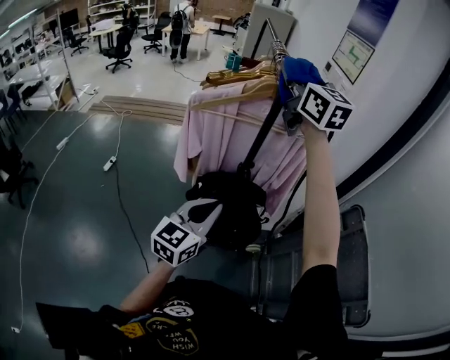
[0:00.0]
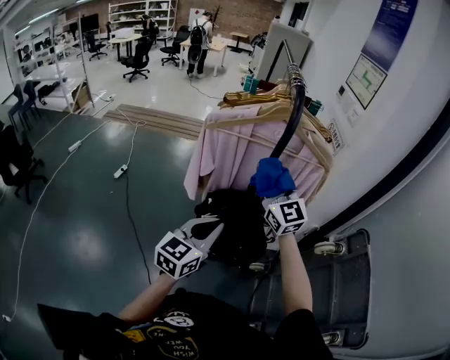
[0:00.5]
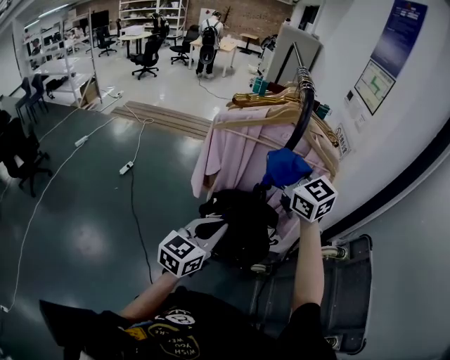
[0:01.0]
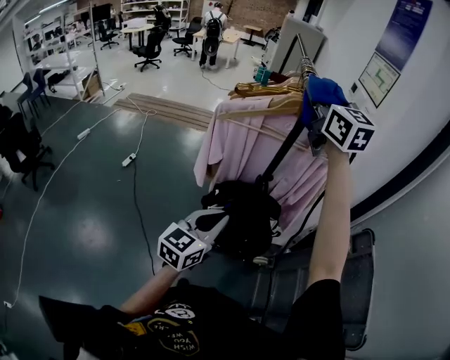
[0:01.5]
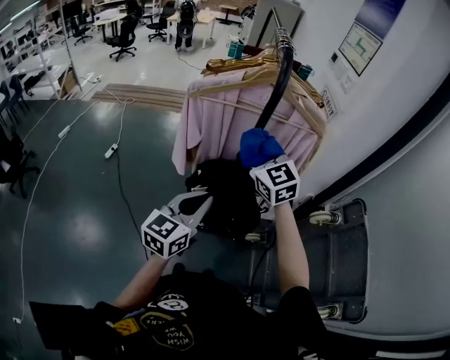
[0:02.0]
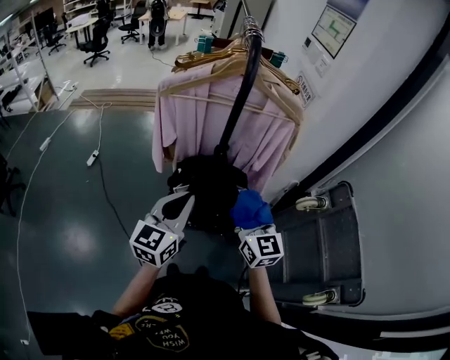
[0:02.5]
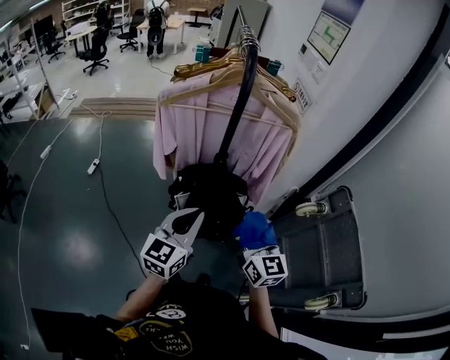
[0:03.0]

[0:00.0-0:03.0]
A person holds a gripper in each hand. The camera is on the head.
0.0 to 1.5 s: The right gripper goes downward and returns, some 20 cm each way.
1.5 to 3.0 s: The right gripper goes roughly 40 cm downward and backward, and turns by roughly 30 degrees.

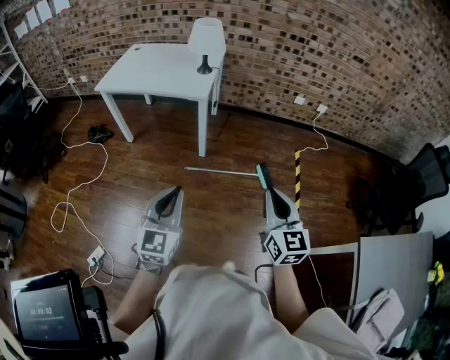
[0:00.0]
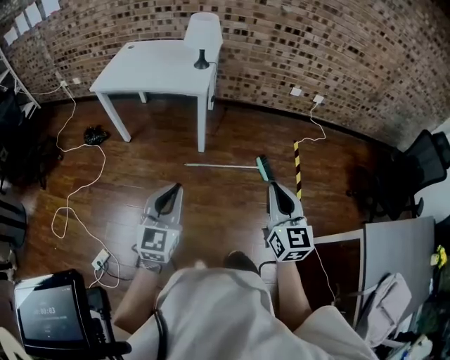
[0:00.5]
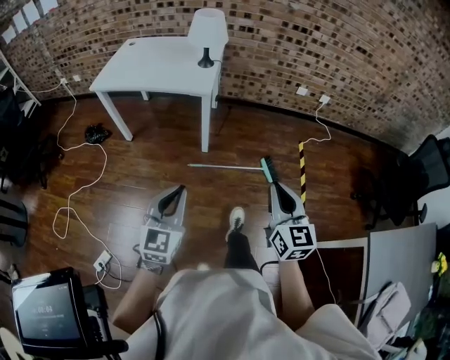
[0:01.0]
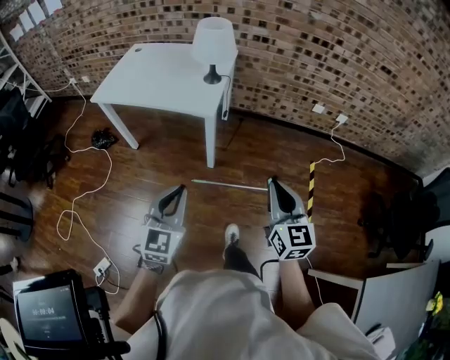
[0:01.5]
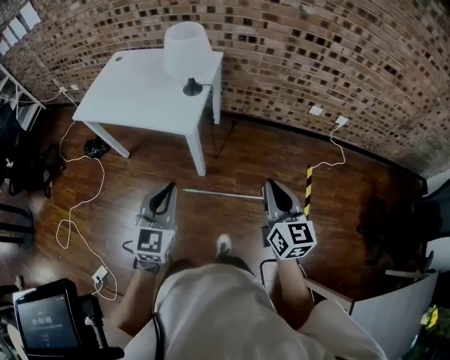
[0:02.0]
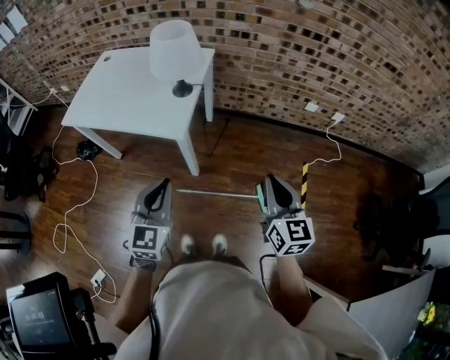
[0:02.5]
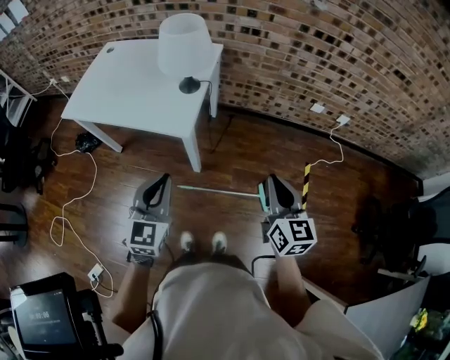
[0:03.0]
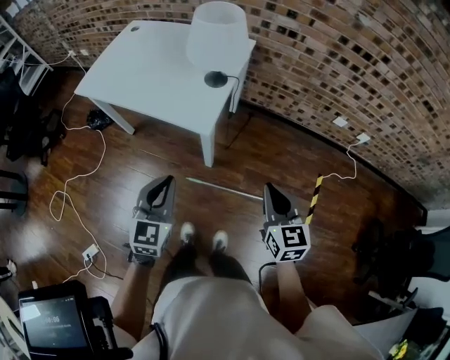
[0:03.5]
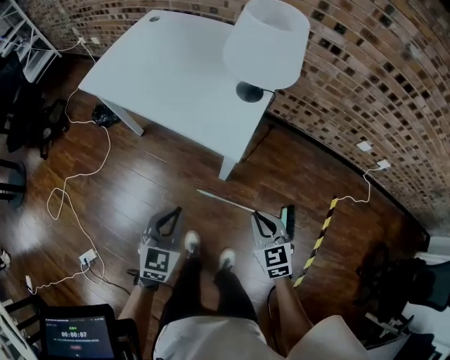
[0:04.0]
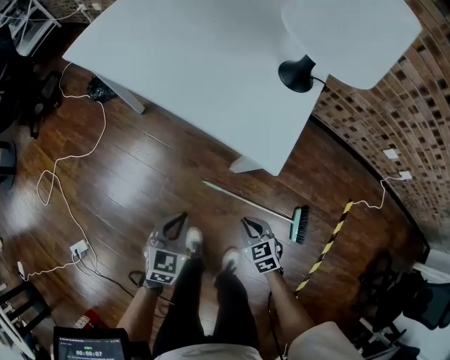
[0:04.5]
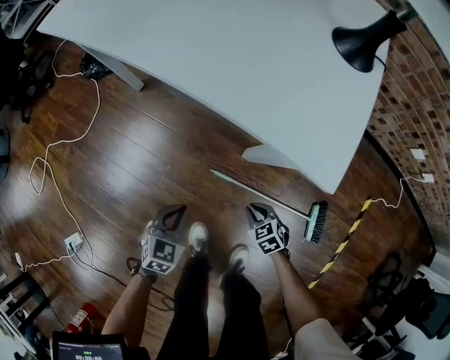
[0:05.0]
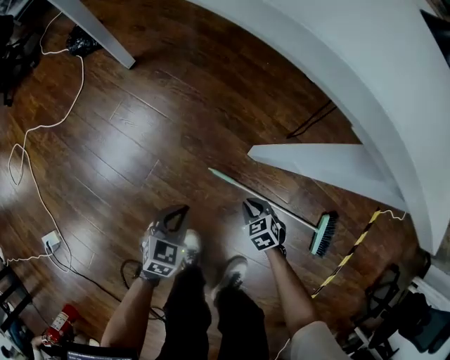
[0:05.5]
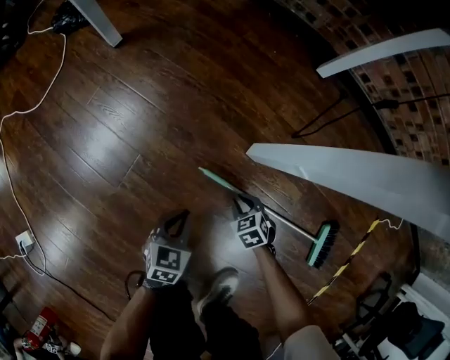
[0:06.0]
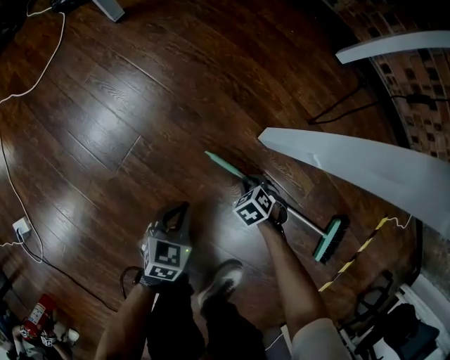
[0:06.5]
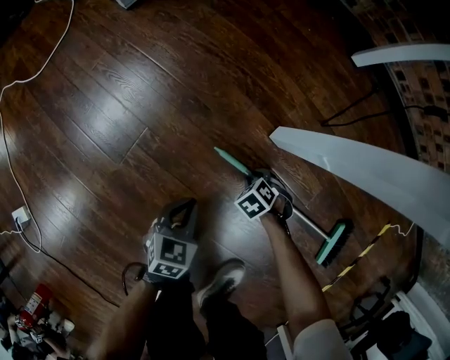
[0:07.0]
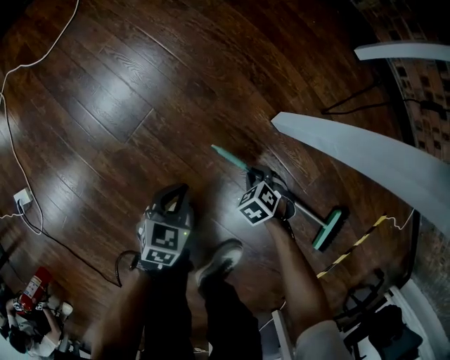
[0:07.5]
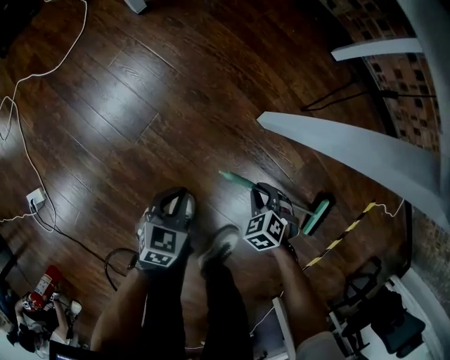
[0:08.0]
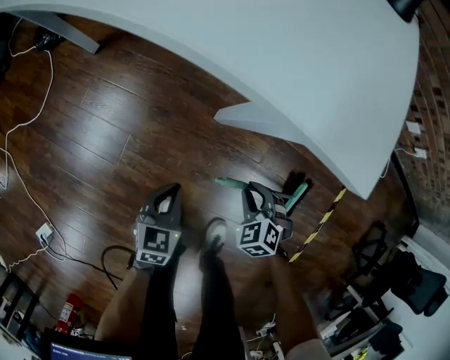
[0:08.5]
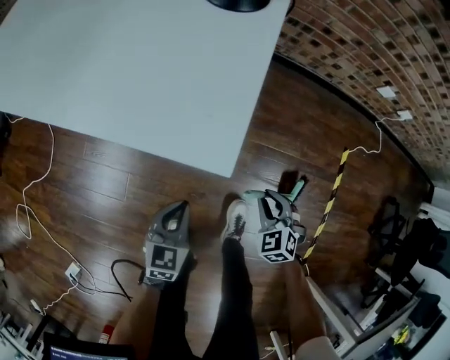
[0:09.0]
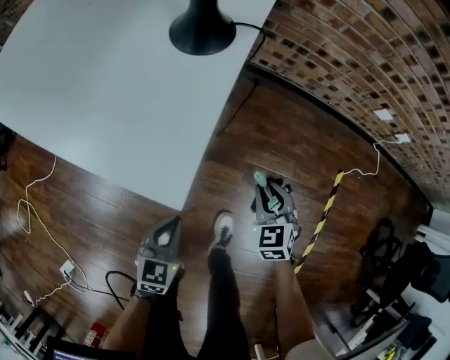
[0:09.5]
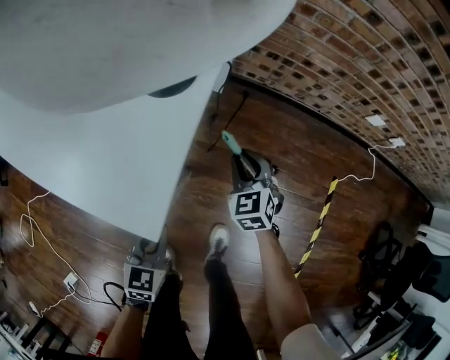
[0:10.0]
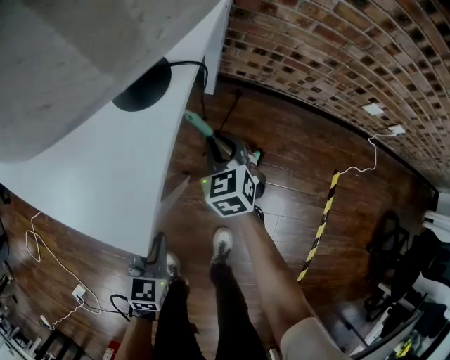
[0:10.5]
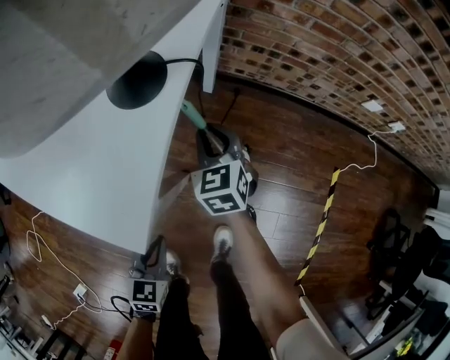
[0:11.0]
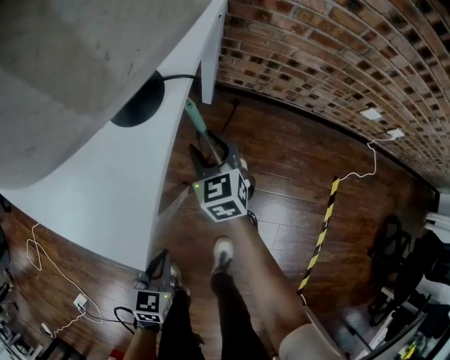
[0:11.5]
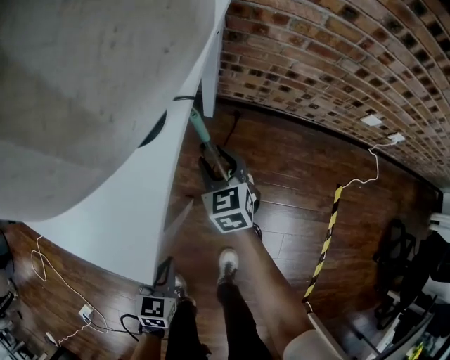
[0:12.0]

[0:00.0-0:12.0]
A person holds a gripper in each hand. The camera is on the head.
0.0 to 2.0 s: Both grippers travel together forward, approximately 35 cm.
2.0 to 4.0 s: Both grippers move downward, to the left and forward, about 30 cm. The right gripper turns by some 40 degrees.
4.0 to 6.0 s: The grippers both shift downward by some 70 cm. The right gripper tips its fingers downward by about 30 degrees; the left gripper swivels roughly 30 degrees.
6.0 to 8.0 s: The grippers both shift upward by some 15 cm. The right gripper turns by approximately 20 degrees.
8.0 to 10.0 s: The left gripper is displaced upward by some 30 cm. The right gripper changes place by roughly 50 cm, and tilts its fingers some 40 degrees upward.
10.0 to 12.0 s: The right gripper goes roughly 10 cm forward, and opens up.

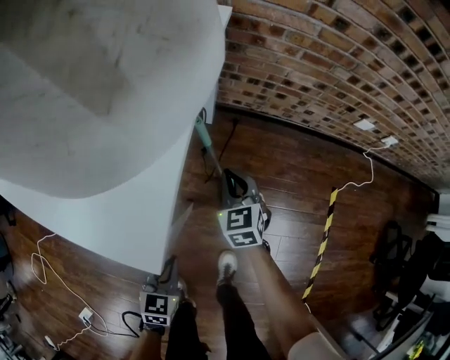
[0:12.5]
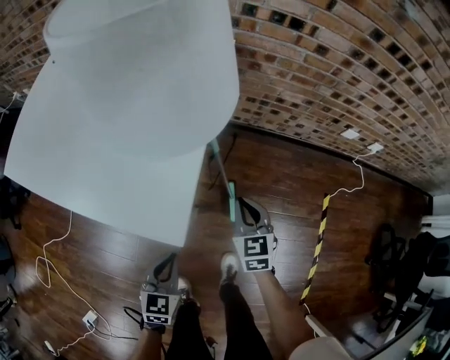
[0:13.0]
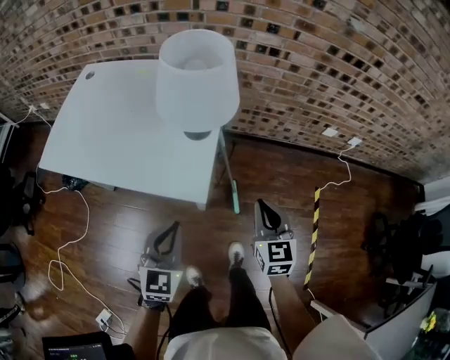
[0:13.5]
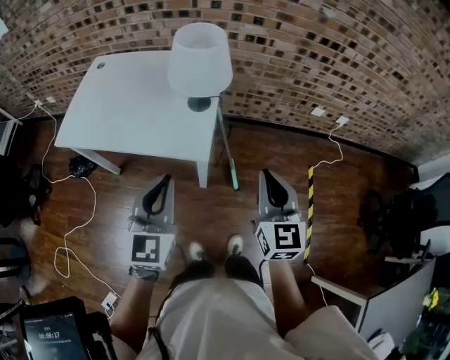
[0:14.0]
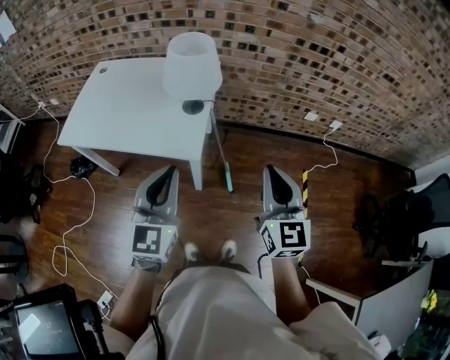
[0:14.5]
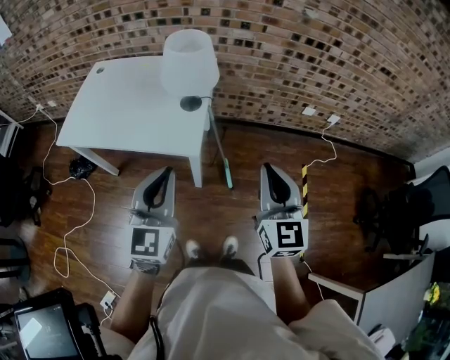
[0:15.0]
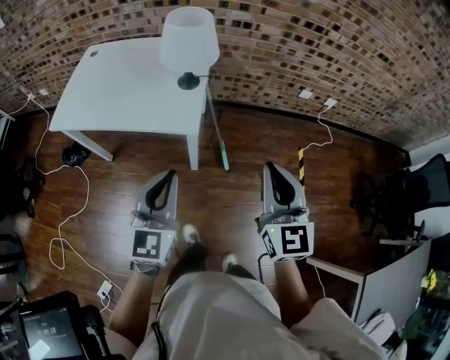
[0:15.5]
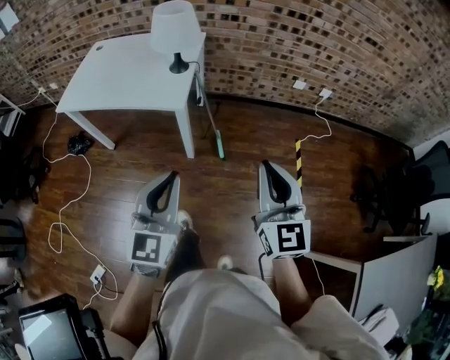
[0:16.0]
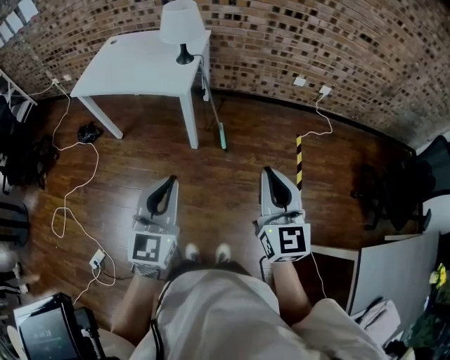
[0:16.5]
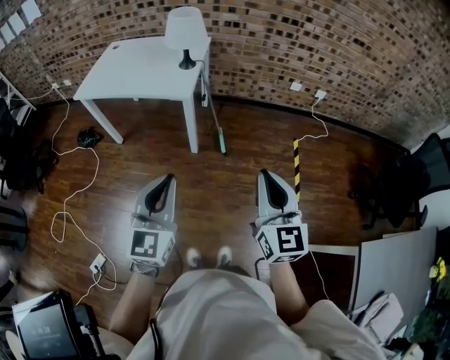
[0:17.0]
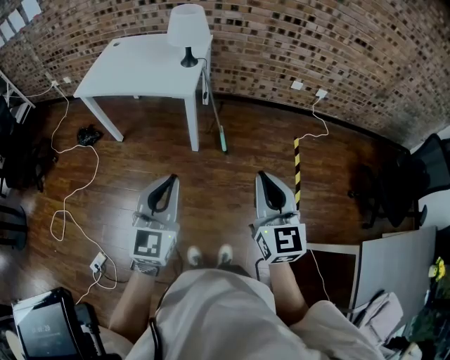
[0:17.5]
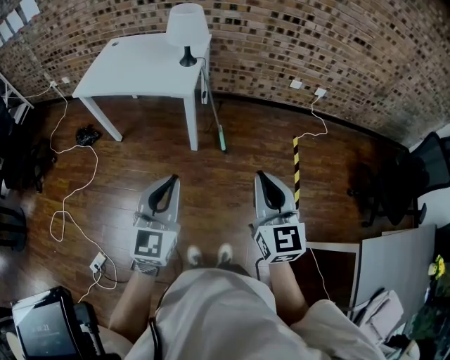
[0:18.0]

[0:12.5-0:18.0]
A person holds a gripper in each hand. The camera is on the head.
12.5 to 14.5 s: The left gripper shifts about 50 cm upward, and angles its fingers upward, by about 40 degrees, while the right gripper goes roughly 60 cm upward and backward, and tilts its fingers some 30 degrees upward.
14.5 to 16.0 s: The right gripper travels backward by roughly 20 cm. Meanwhile the left gripper shifts some 25 cm backward and to the right.
16.0 to 18.0 s: The grippers both shift backward by some 15 cm.

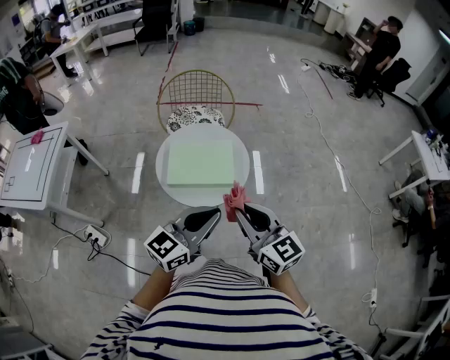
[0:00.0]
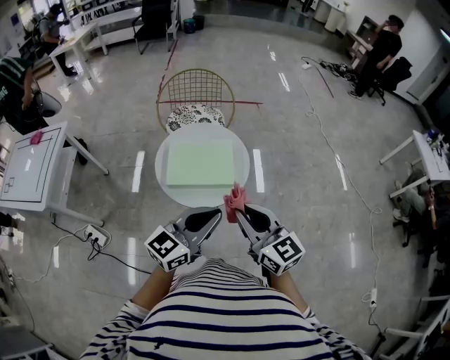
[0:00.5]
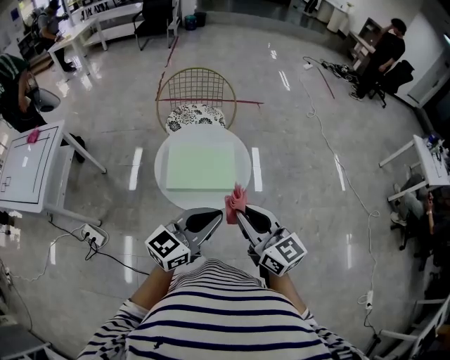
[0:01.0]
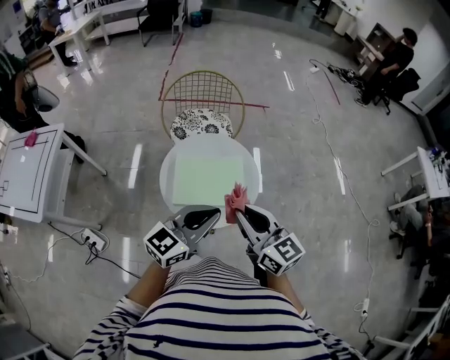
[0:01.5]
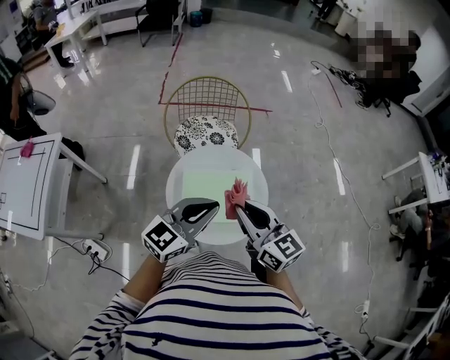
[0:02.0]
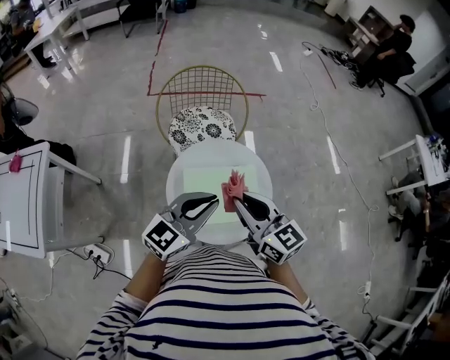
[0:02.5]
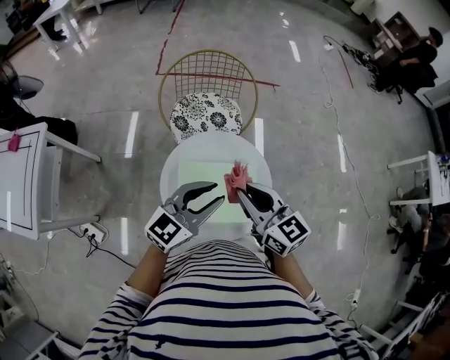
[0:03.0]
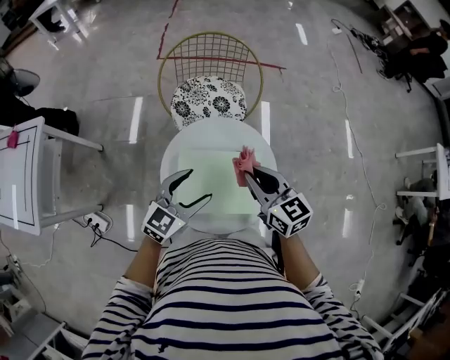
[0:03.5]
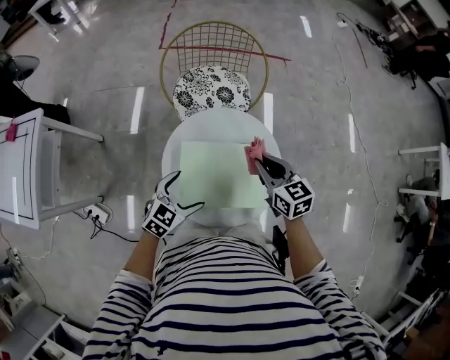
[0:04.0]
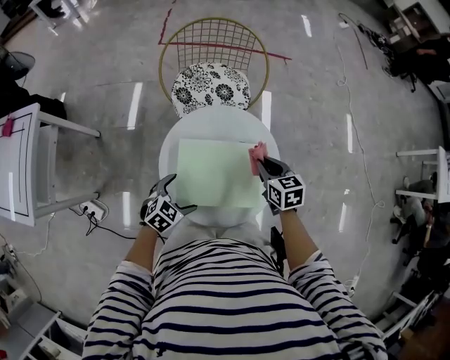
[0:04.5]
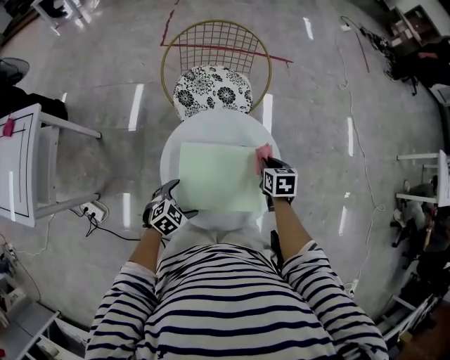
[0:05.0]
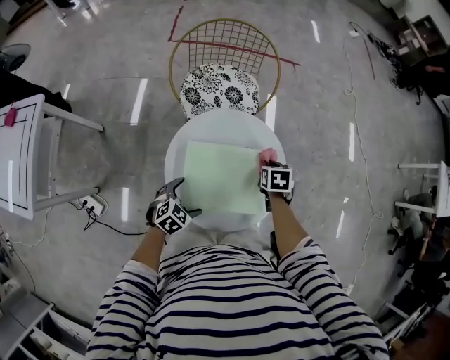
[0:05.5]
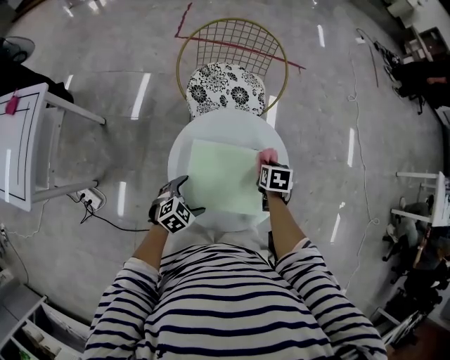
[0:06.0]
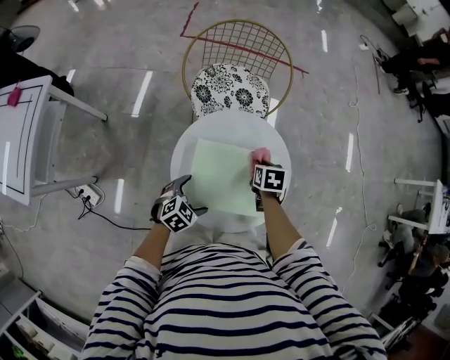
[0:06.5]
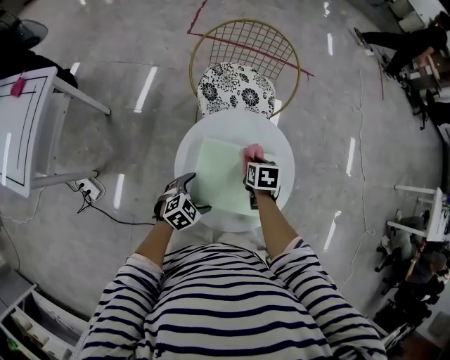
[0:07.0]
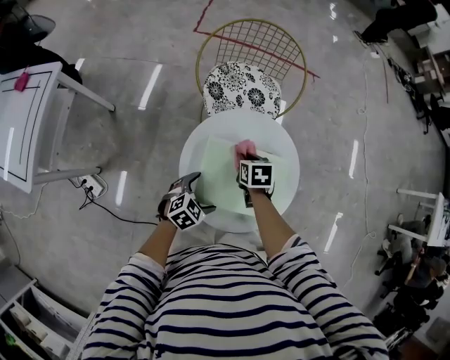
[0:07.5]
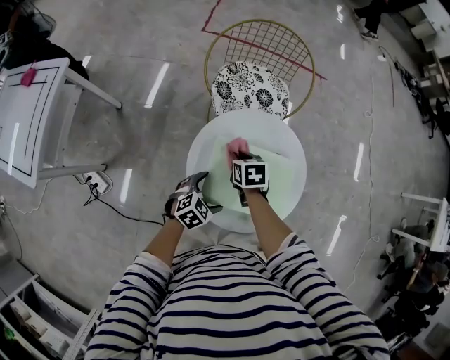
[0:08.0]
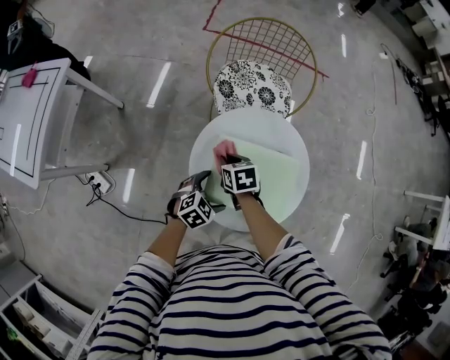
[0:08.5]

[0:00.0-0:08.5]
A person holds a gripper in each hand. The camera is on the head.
0.0 to 2.0 s: The grippers both shift forward and to the left by roughly 25 cm.
2.0 to 4.0 s: The right gripper shifts roughly 25 cm downward and forward, and rotates some 20 degrees; the left gripper is displaced downward by roughly 25 cm, angles its fingers downward, by about 30 degrees, and opens its fingers.
4.0 to 6.5 s: The right gripper moves downward, approximately 15 cm, and points its fingers some 30 degrees further downward. Meanwhile the left gripper goes some 10 cm downward.
6.5 to 8.5 s: The right gripper travels to the left by about 20 cm, and turns by roughly 20 degrees.
